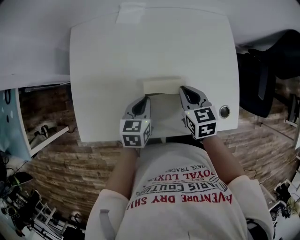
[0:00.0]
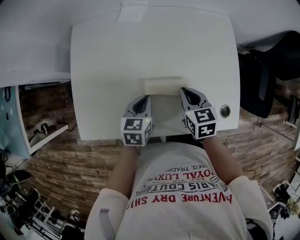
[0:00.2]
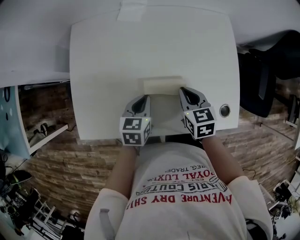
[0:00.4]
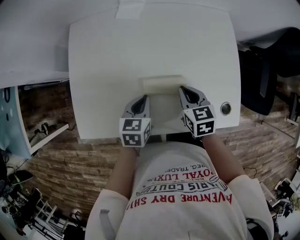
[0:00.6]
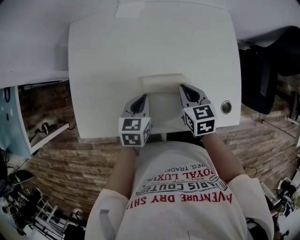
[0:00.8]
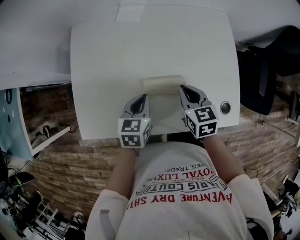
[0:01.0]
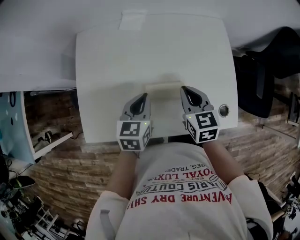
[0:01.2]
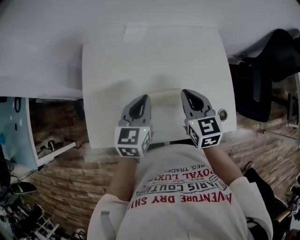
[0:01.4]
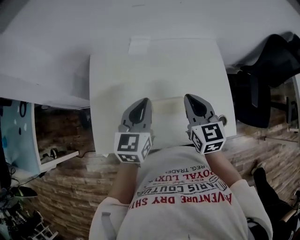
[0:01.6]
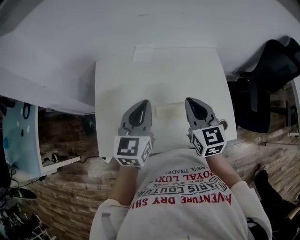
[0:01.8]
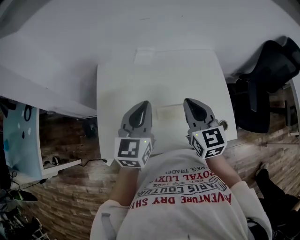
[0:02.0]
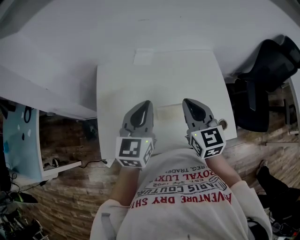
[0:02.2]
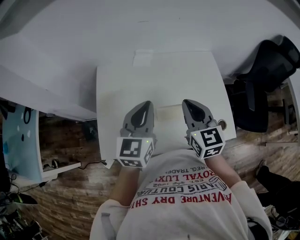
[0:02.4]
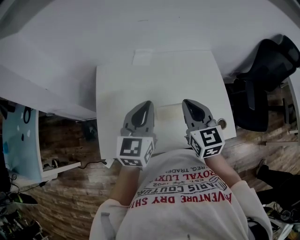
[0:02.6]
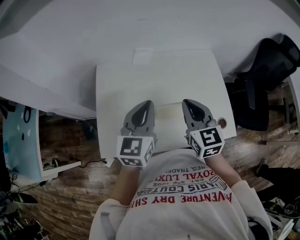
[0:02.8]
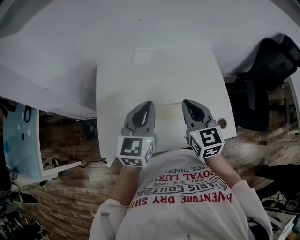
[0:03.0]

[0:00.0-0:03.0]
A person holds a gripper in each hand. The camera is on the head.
0:00.0 to 0:01.6: The two grippers go about 20 cm upward. The right gripper swivels about 20 degrees; the left gripper rotates approximately 30 degrees.
0:01.6 to 0:03.0: The right gripper ends up some 5 cm from where it was, while the left gripper goes some 5 cm upward.

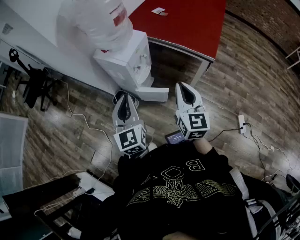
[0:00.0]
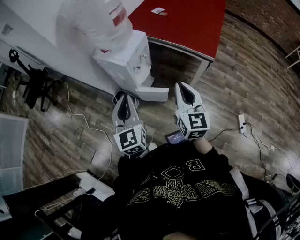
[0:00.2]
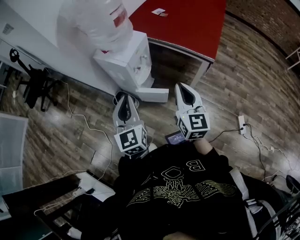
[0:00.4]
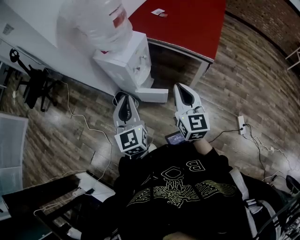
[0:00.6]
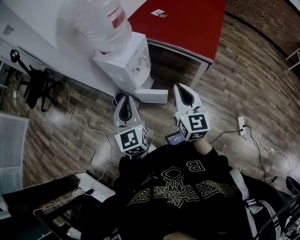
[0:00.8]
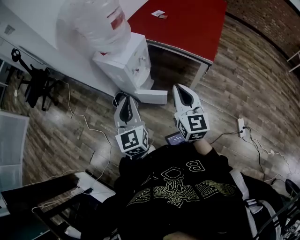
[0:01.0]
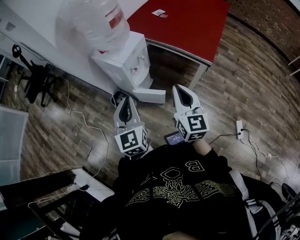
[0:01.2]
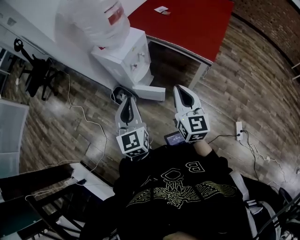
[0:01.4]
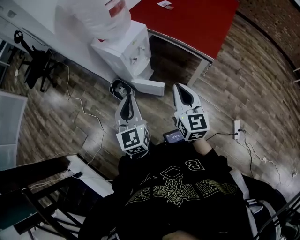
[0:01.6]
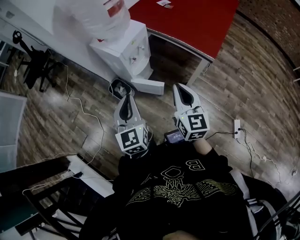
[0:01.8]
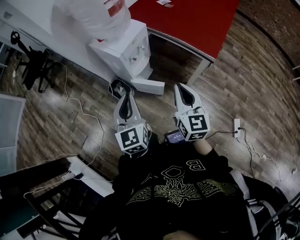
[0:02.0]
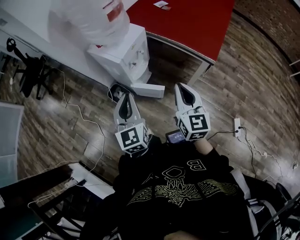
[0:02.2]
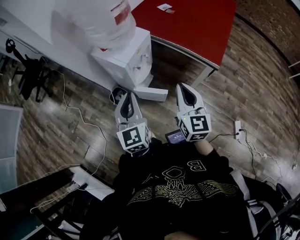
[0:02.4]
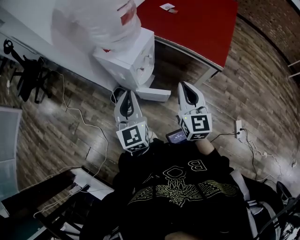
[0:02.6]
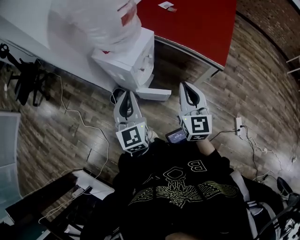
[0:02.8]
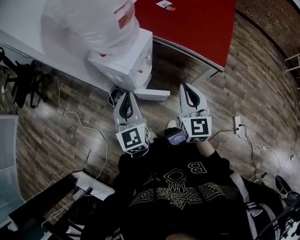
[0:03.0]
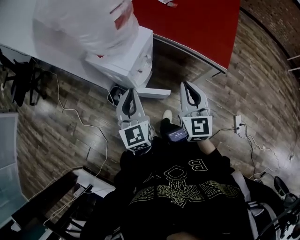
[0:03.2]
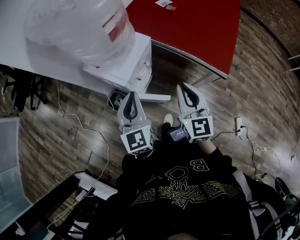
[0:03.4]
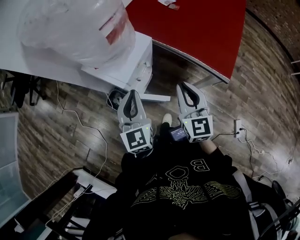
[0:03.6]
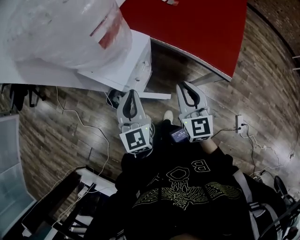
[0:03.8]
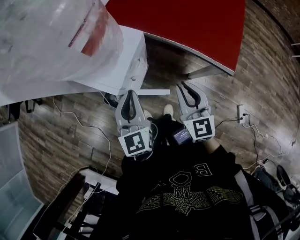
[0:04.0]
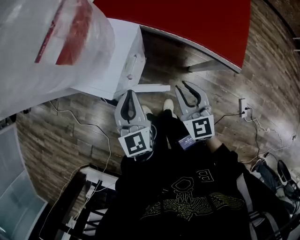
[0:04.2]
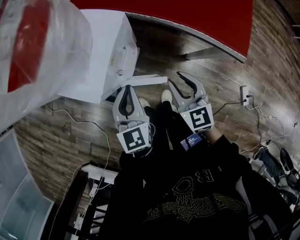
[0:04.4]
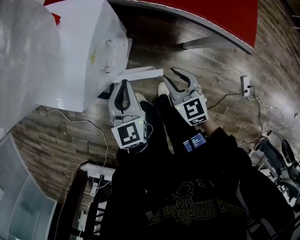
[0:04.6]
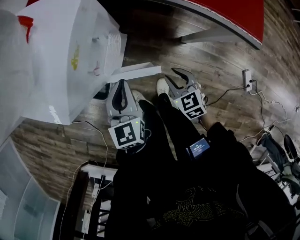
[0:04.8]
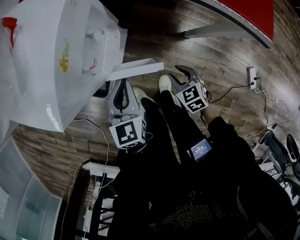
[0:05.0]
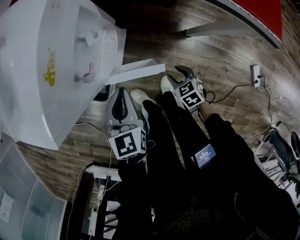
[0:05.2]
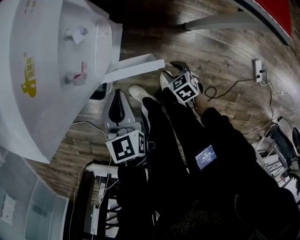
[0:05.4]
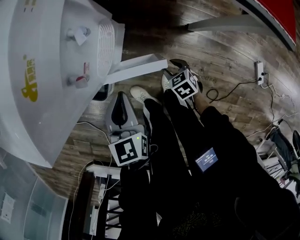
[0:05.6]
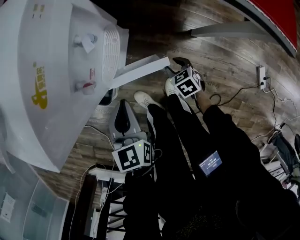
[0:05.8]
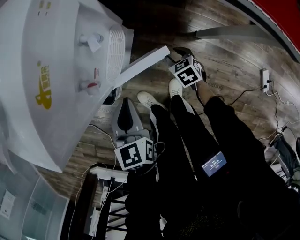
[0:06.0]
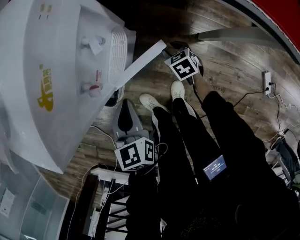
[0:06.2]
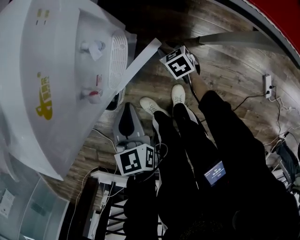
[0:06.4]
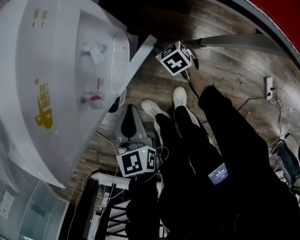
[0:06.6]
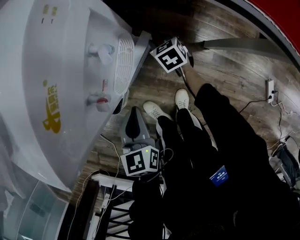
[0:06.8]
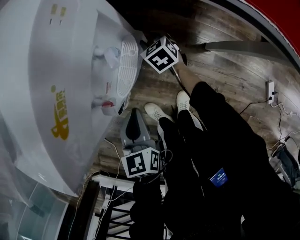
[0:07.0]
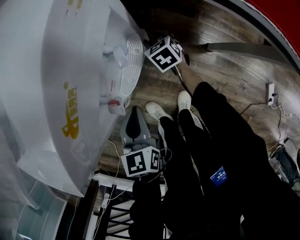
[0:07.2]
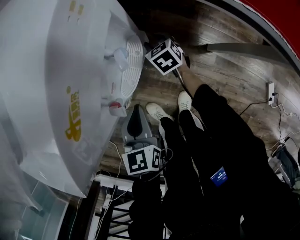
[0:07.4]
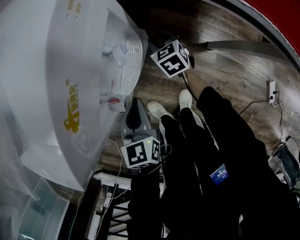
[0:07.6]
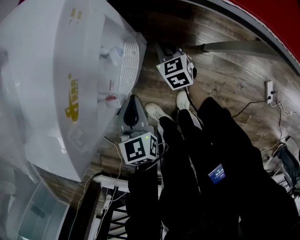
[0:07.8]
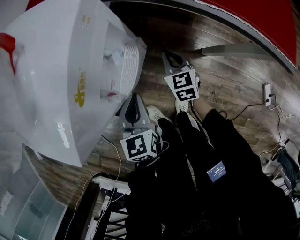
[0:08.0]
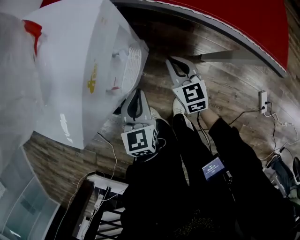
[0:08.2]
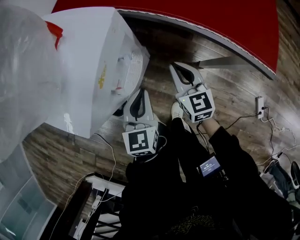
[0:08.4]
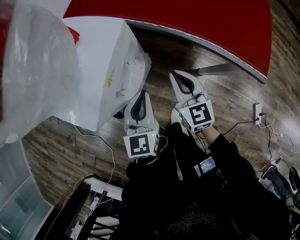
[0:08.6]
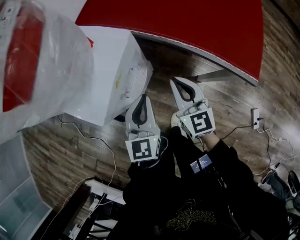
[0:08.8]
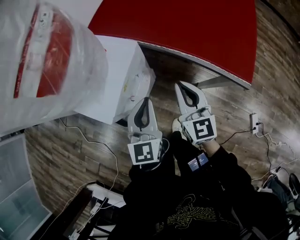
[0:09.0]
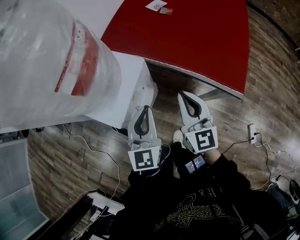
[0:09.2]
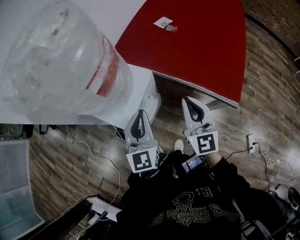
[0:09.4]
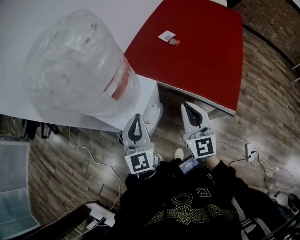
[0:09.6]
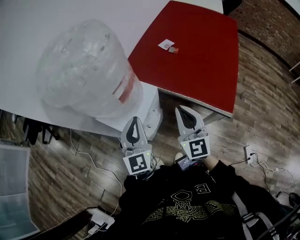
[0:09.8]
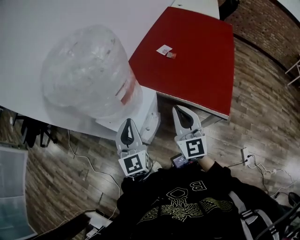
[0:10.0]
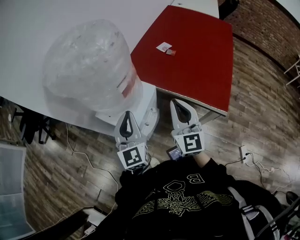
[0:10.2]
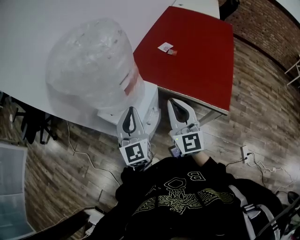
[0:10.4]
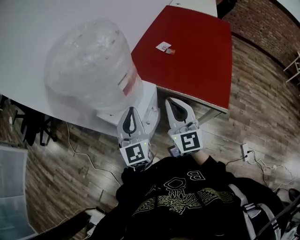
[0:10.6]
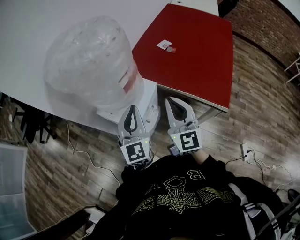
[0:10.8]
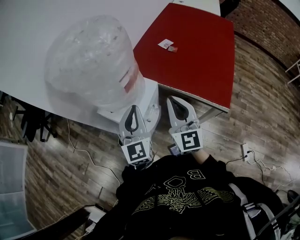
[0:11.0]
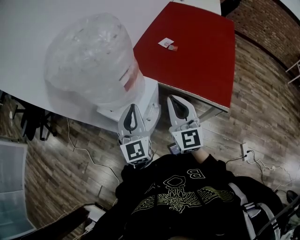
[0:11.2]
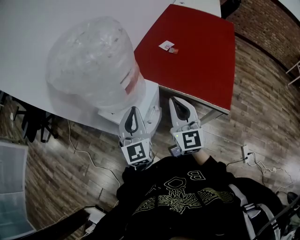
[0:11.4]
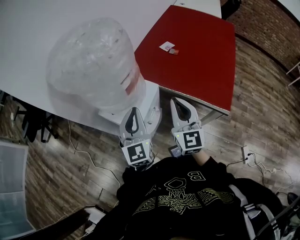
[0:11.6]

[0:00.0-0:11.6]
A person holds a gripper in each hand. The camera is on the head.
0:00.0 to 0:01.4: The left gripper is displaced to the right by approximately 5 cm.
0:01.4 to 0:02.8: The grippers both shift forward and to the left by some 15 cm.
0:02.8 to 0:04.4: The right gripper moves downward and forward, roughly 30 cm, changes its angle by approximately 20 degrees, and opens, while the left gripper moves downward, forward and to the right, about 30 cm.
0:04.4 to 0:05.8: The right gripper goes approximately 40 cm downward, and points its fingers roughly 40 degrees further downward; the left gripper heads downward, covering about 20 cm.
0:05.8 to 0:07.2: The right gripper moves forward, some 25 cm.
0:07.2 to 0:08.8: The left gripper goes approximately 20 cm upward, and rotates some 30 degrees, while the right gripper is displaced upward by some 35 cm, angles its fingers upward, by approximately 40 degrees, and closes.
0:08.8 to 0:10.2: The left gripper heads upward and to the left, covering about 30 cm, and turns by some 20 degrees; the right gripper travels upward by some 30 cm.
0:10.2 to 0:11.6: The grippers stay close to where they were, moving slightly.

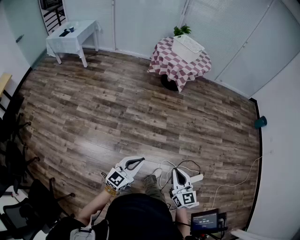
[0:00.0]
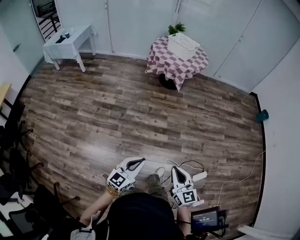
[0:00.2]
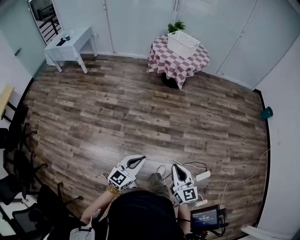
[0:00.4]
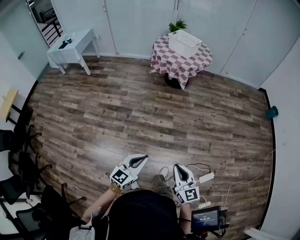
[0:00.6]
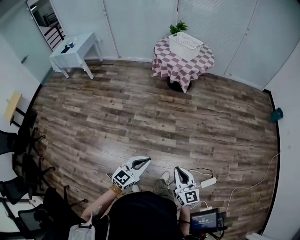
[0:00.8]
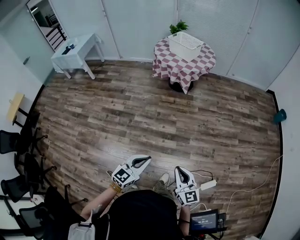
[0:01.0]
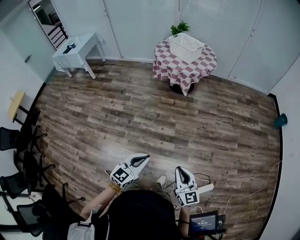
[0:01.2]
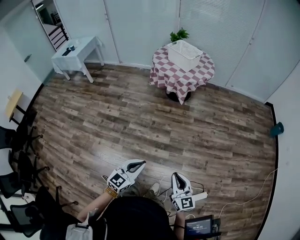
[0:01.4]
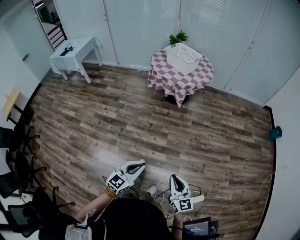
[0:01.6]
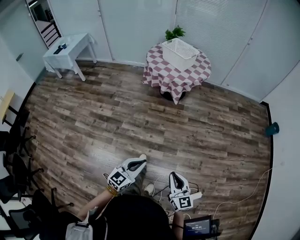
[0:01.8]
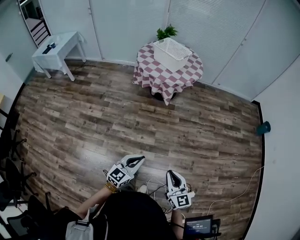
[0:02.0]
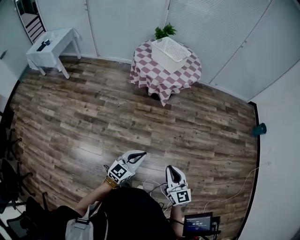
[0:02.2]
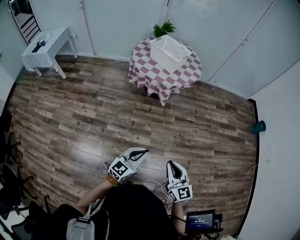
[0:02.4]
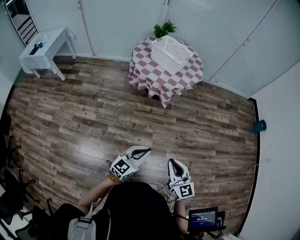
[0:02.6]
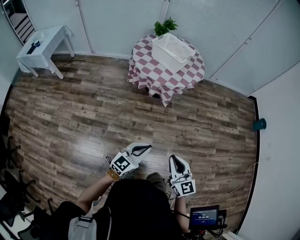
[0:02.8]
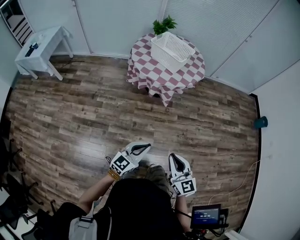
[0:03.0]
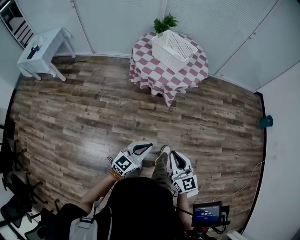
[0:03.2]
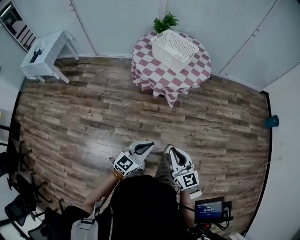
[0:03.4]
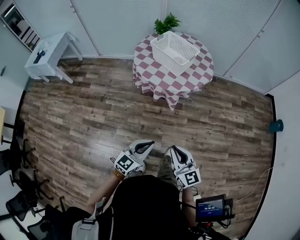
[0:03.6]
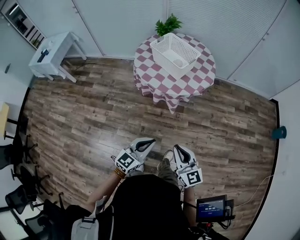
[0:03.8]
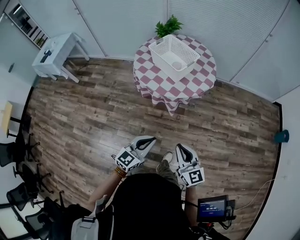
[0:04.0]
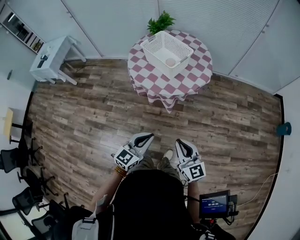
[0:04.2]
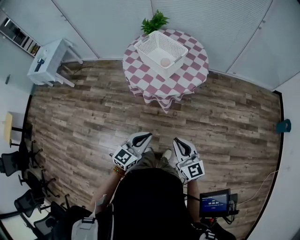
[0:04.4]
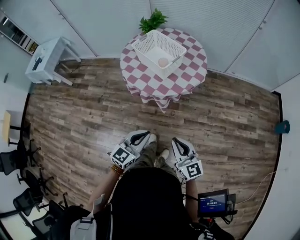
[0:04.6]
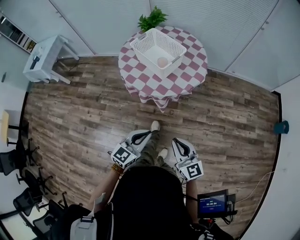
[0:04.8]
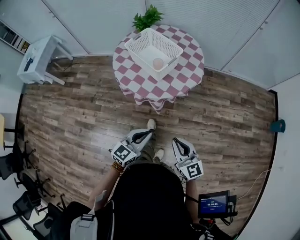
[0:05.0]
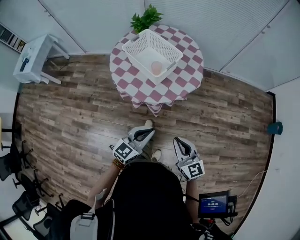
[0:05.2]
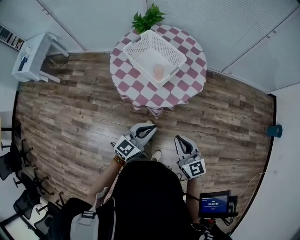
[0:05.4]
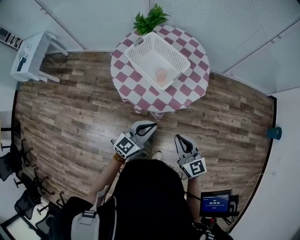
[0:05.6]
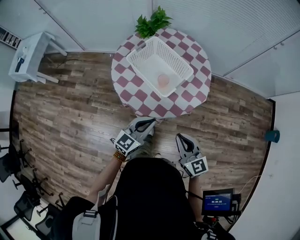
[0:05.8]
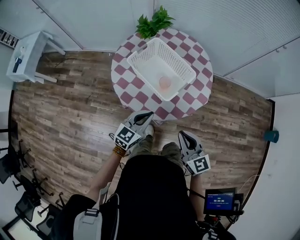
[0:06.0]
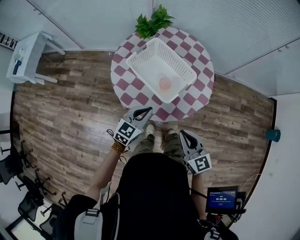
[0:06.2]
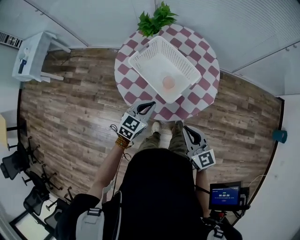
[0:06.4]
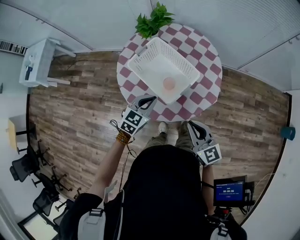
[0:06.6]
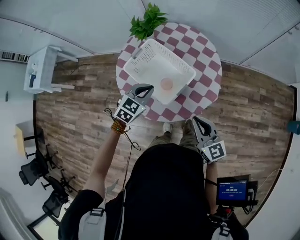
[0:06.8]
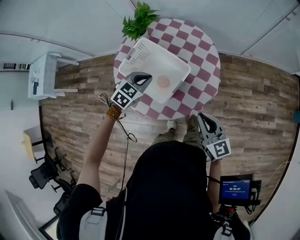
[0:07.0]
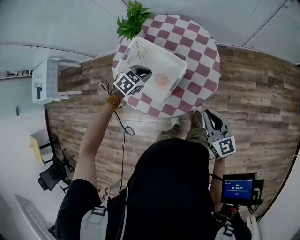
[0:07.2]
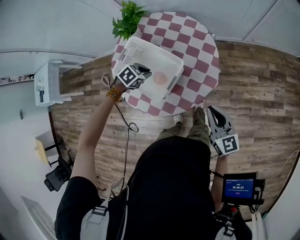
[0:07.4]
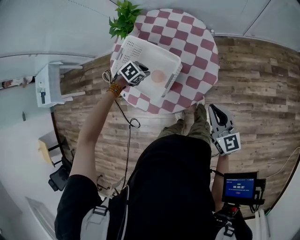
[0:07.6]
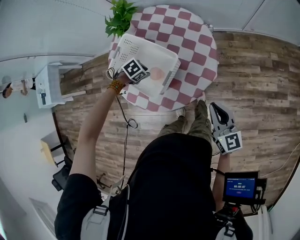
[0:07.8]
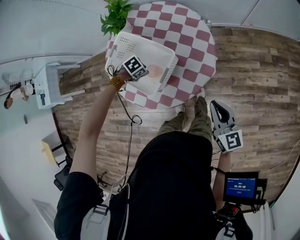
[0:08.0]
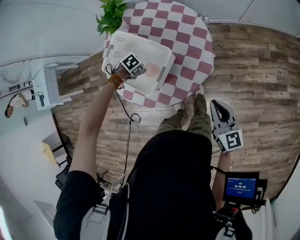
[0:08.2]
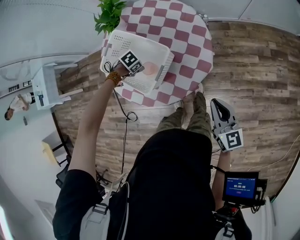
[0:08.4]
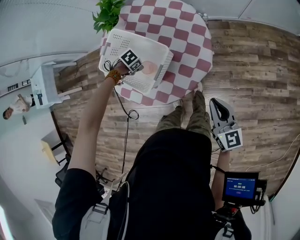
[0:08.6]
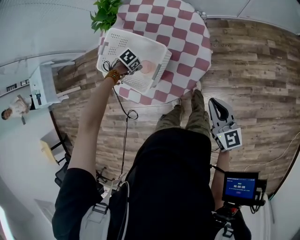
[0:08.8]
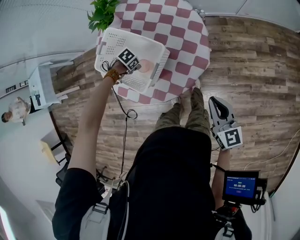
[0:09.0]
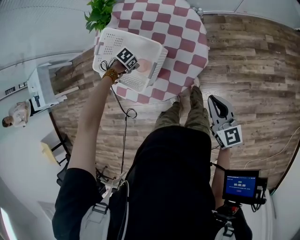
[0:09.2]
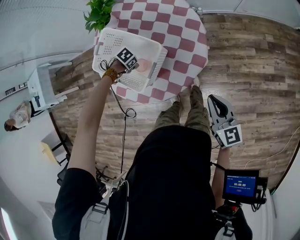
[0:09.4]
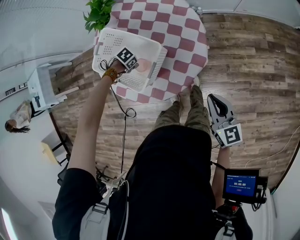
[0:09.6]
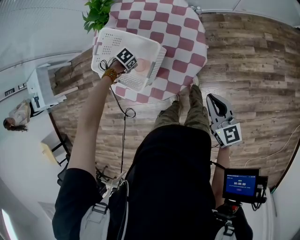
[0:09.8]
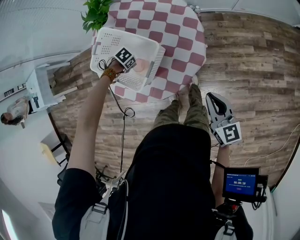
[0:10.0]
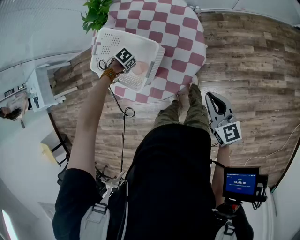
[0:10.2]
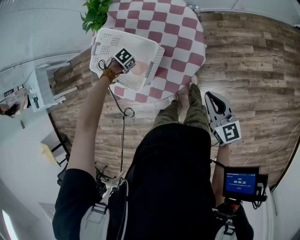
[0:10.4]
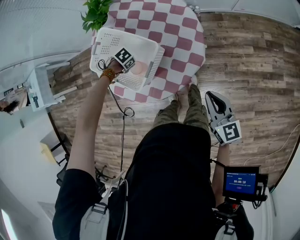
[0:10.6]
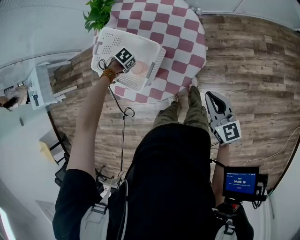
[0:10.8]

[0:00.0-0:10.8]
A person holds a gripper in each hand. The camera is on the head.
0:00.0 to 0:01.6: The two grippers go about 25 cm forward and to the right.
0:01.6 to 0:03.0: The left gripper is displaced forward by some 35 cm. The right gripper travels forward and to the left by some 35 cm.
0:03.0 to 0:04.6: Both grippers travel together forward and to the right, about 30 cm.
0:04.6 to 0:06.2: Both grippers move forward, some 35 cm.
0:06.2 to 0:07.8: The left gripper shifts by roughly 25 cm, points its fingers some 60 degrees further downward, and opens; the right gripper moves about 25 cm.
0:07.8 to 0:09.2: The left gripper heads downward, covering approximately 10 cm.
0:09.2 to 0:10.8: Both grippers stay put.
